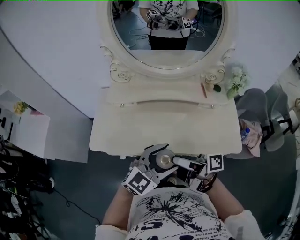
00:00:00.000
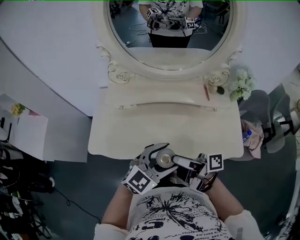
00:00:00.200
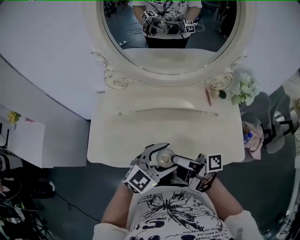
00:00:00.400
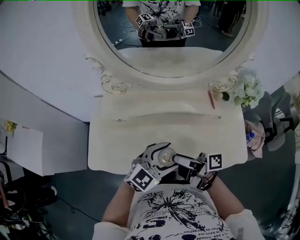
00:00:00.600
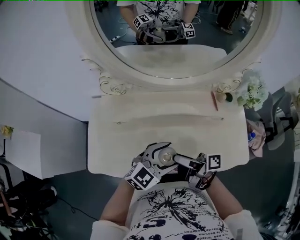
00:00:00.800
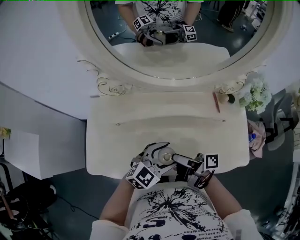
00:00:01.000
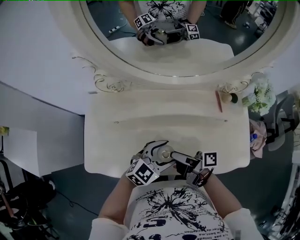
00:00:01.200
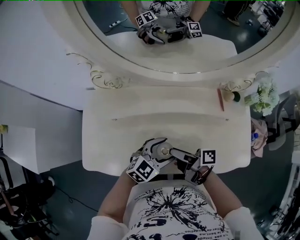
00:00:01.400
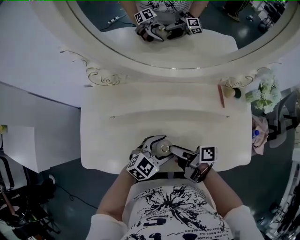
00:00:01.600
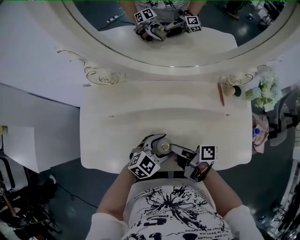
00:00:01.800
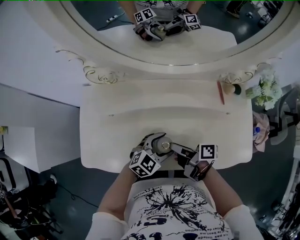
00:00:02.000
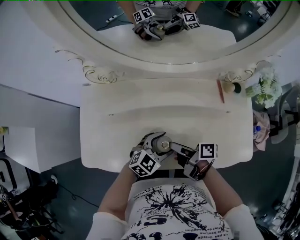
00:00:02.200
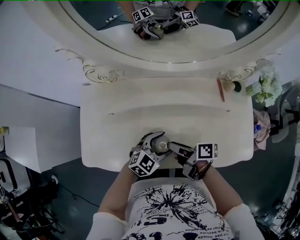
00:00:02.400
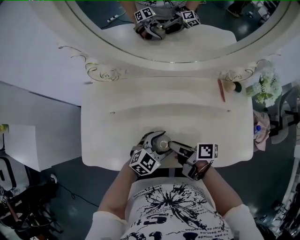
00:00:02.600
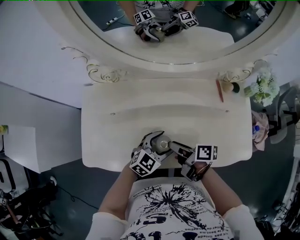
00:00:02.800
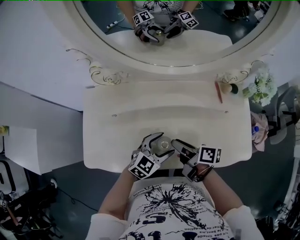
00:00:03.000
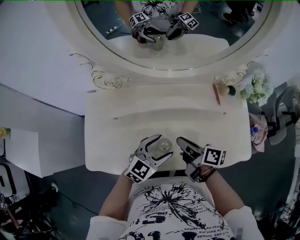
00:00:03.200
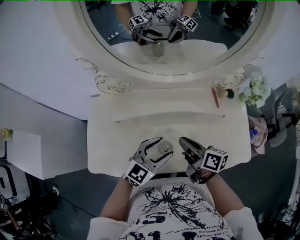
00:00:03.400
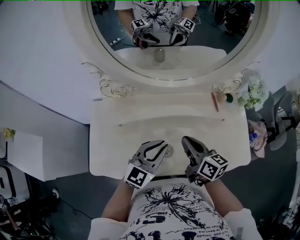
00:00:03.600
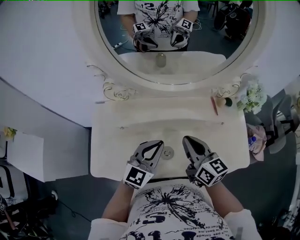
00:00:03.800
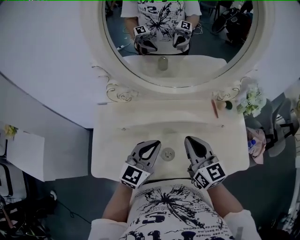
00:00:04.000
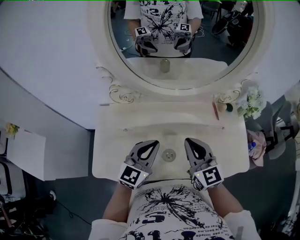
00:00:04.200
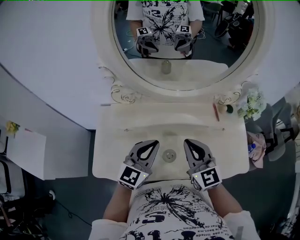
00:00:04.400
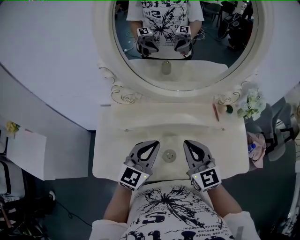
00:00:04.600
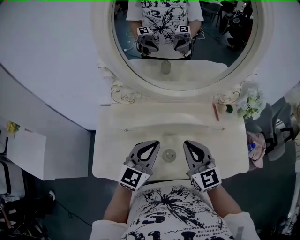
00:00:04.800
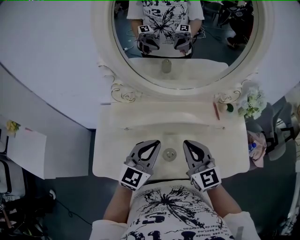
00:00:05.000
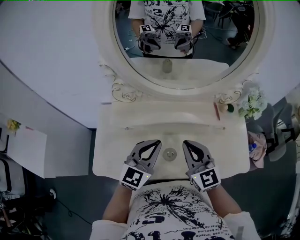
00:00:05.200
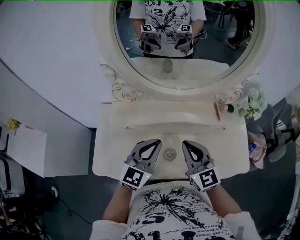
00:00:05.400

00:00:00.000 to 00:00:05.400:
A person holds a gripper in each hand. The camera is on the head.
00:00:00.000 to 00:00:01.400: Both grippers travel together forward and downward, approximately 25 cm.
00:00:01.400 to 00:00:02.800: The right gripper closes up.
00:00:02.800 to 00:00:04.000: The right gripper goes about 20 cm upward, twists roughly 60 degrees counterclockwise, seen from behind, and closes. Meanwhile the left gripper heads upward and to the left, covering about 20 cm, turns by approximately 30 degrees, and closes.
00:00:04.000 to 00:00:05.400: There are only small adjustments of the grippers.

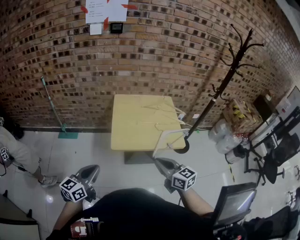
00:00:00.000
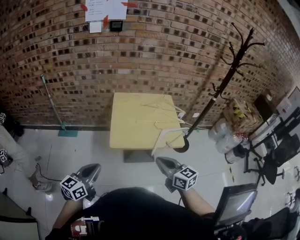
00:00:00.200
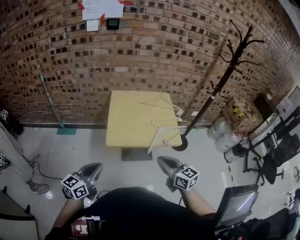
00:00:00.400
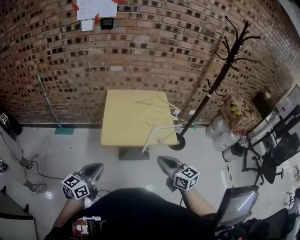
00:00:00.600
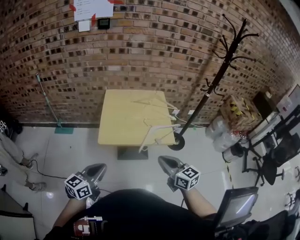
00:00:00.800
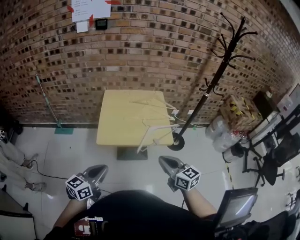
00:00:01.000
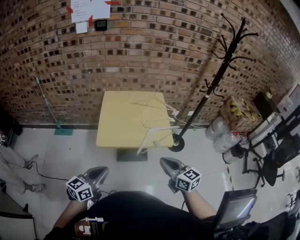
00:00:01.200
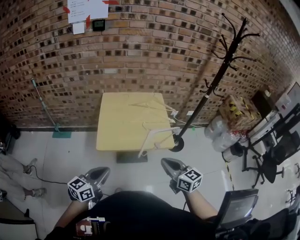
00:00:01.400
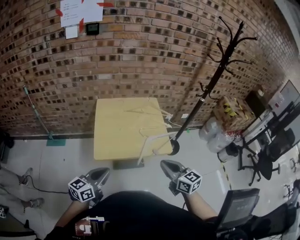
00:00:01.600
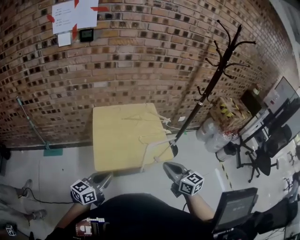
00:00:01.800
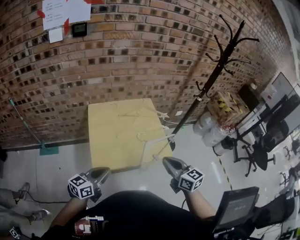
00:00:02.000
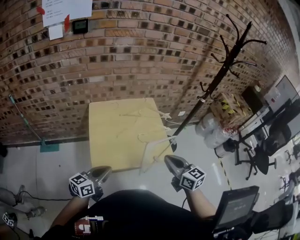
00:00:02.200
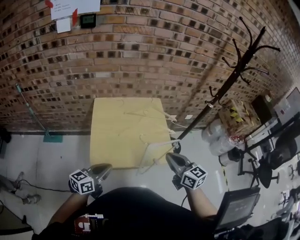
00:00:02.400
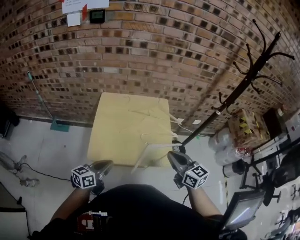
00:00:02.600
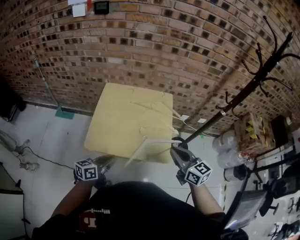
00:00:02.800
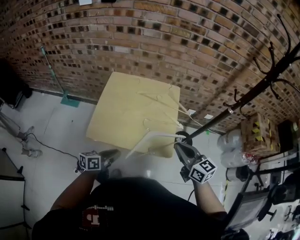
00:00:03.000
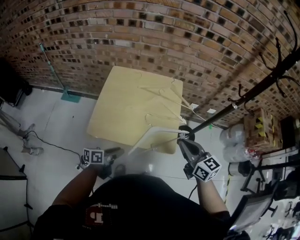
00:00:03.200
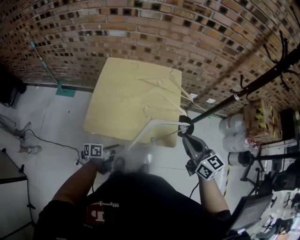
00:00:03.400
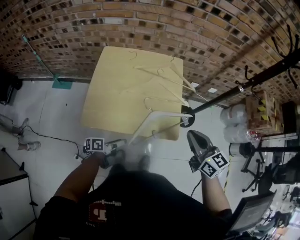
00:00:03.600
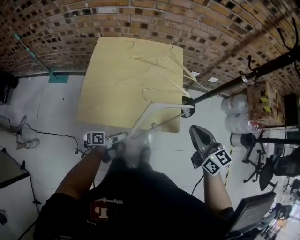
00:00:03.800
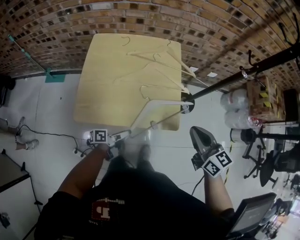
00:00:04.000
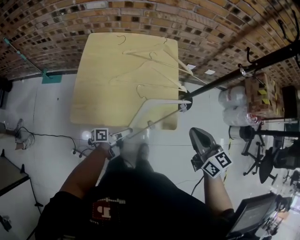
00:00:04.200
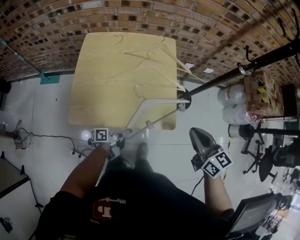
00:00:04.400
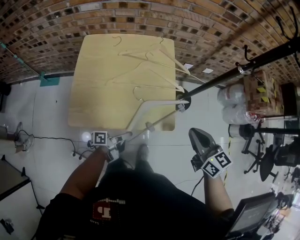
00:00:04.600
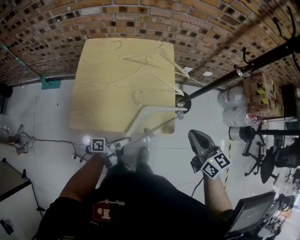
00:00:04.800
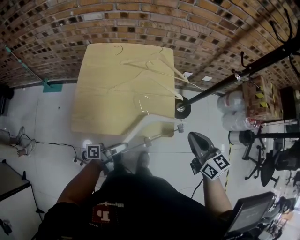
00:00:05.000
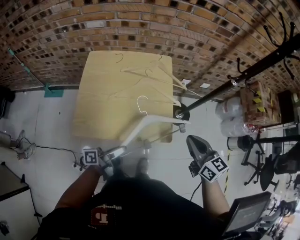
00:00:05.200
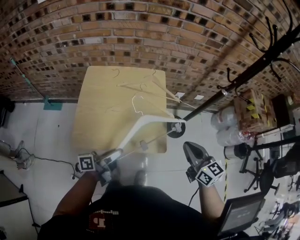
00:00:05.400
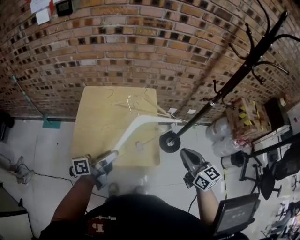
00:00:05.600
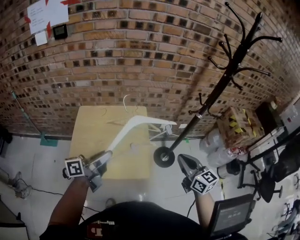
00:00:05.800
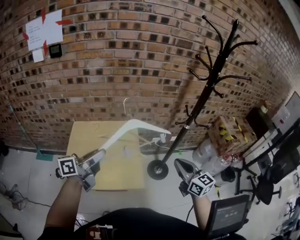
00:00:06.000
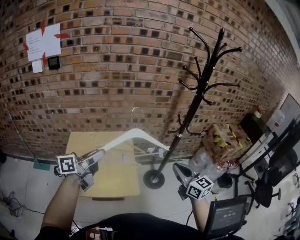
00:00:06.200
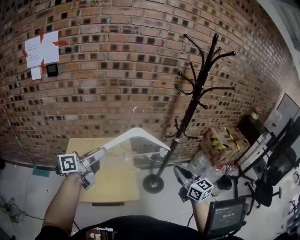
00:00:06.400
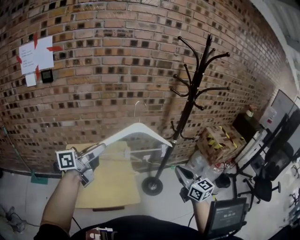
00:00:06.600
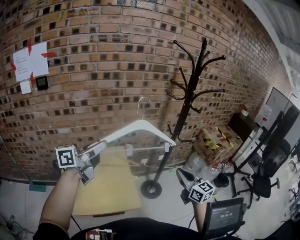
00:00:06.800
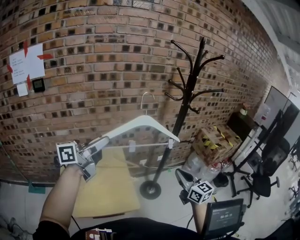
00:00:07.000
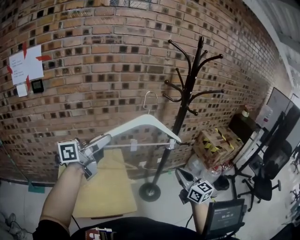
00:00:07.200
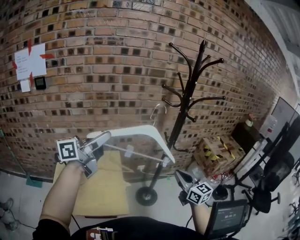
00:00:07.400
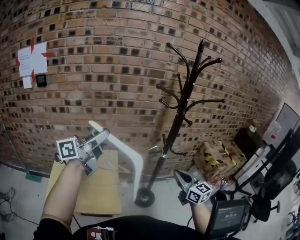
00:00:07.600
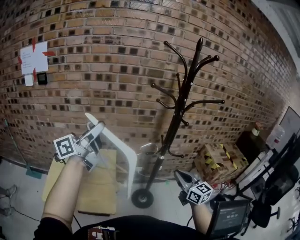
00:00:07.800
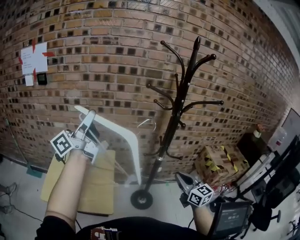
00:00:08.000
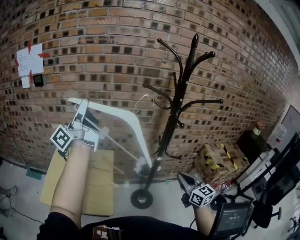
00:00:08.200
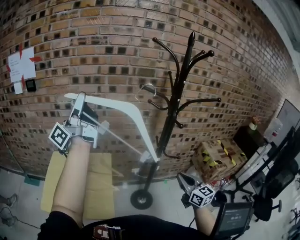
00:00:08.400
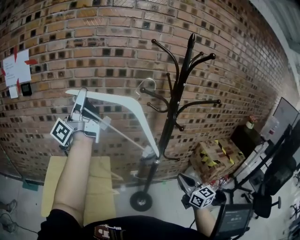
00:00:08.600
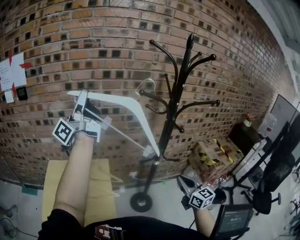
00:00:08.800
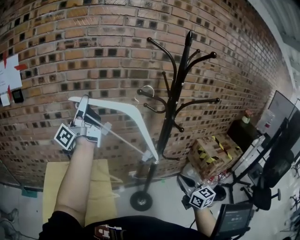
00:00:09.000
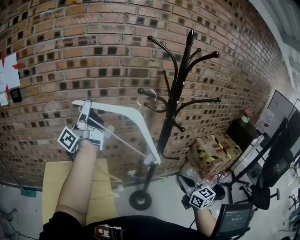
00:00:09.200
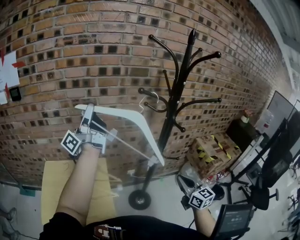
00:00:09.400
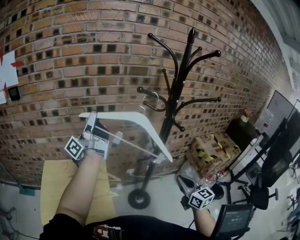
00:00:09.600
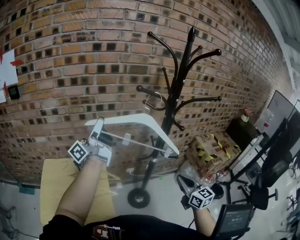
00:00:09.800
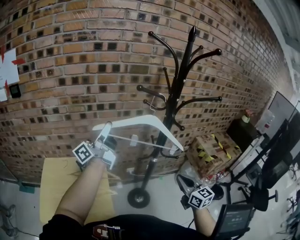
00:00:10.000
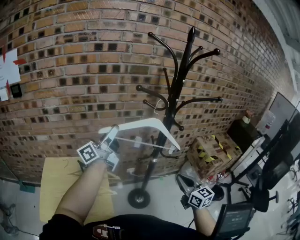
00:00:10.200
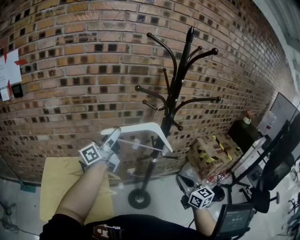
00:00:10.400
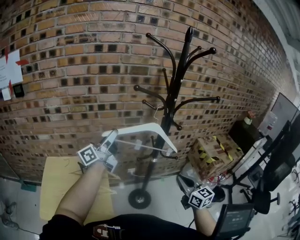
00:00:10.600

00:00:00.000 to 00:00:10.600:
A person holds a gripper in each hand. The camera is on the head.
00:00:00.000 to 00:00:01.600: The right gripper goes about 10 cm to the right. Meanwhile the left gripper travels to the right and forward by some 15 cm.
00:00:01.600 to 00:00:03.000: The right gripper travels forward and to the right by approximately 25 cm. Meanwhile the left gripper is displaced to the right, downward and forward by some 20 cm, and turns by approximately 30 degrees.
00:00:03.000 to 00:00:04.600: The left gripper heads downward and to the right, covering about 20 cm, rotates around the line of its fingers by some 40 degrees, counterclockwise from behind, and opens and closes again. The right gripper travels downward and to the right by roughly 10 cm.
00:00:04.600 to 00:00:06.000: The left gripper shifts roughly 40 cm upward, and twists roughly 40 degrees clockwise, seen from behind. The right gripper heads upward and to the right, covering approximately 20 cm.
00:00:06.000 to 00:00:07.600: The left gripper travels upward, forward and to the right by about 25 cm, and turns by roughly 20 degrees. Meanwhile the right gripper shifts some 15 cm to the right and forward.
00:00:07.600 to 00:00:09.000: The left gripper shifts roughly 20 cm forward and upward, and angles its fingers upward, by about 40 degrees. Meanwhile the right gripper heads to the right, covering approximately 5 cm.
00:00:09.000 to 00:00:10.600: The left gripper goes about 20 cm downward and to the right, and rotates about 30 degrees.

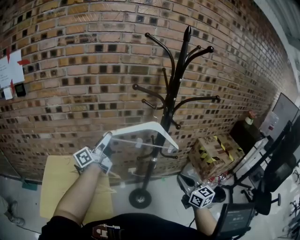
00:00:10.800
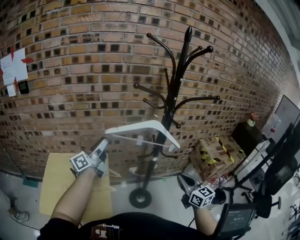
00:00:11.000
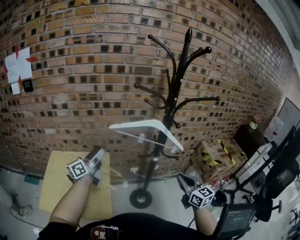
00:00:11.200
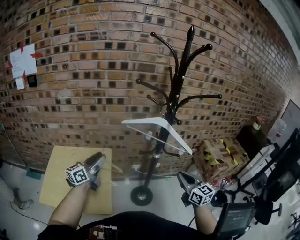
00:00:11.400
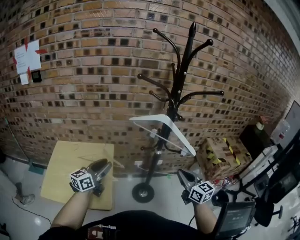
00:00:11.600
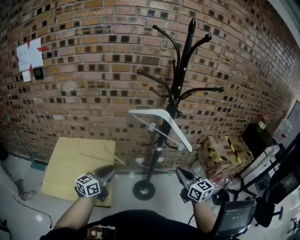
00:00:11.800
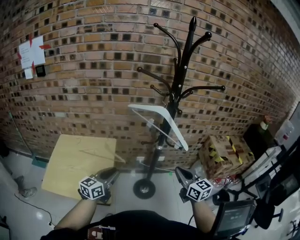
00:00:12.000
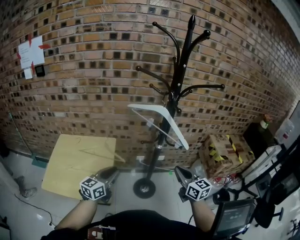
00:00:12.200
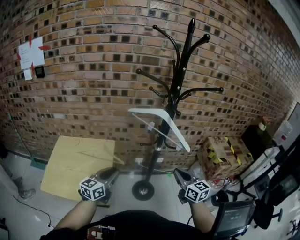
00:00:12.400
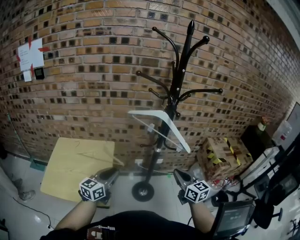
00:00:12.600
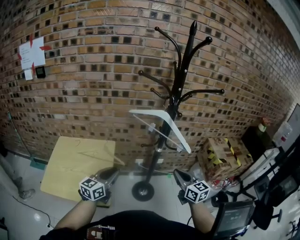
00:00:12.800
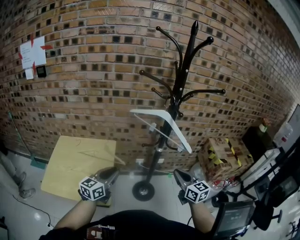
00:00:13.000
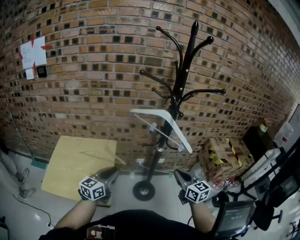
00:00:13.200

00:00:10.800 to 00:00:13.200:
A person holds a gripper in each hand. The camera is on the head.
00:00:10.800 to 00:00:12.000: The left gripper shifts some 25 cm backward and downward, angles its fingers downward, by approximately 30 degrees, and closes up.
00:00:12.000 to 00:00:13.200: The grippers move only a little.

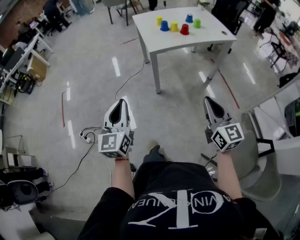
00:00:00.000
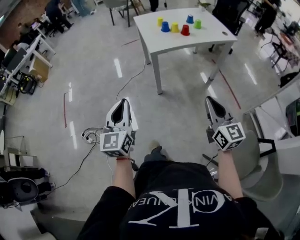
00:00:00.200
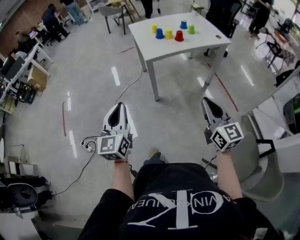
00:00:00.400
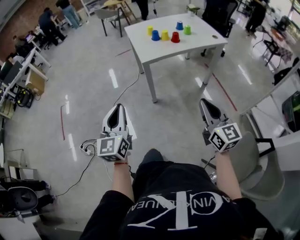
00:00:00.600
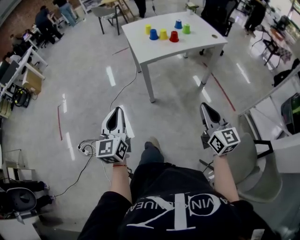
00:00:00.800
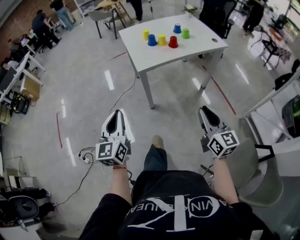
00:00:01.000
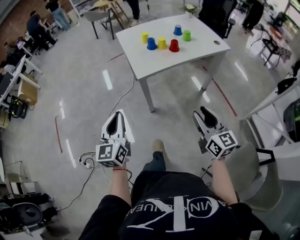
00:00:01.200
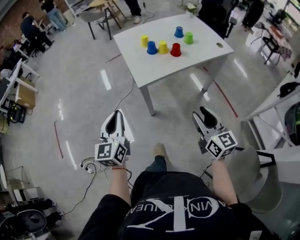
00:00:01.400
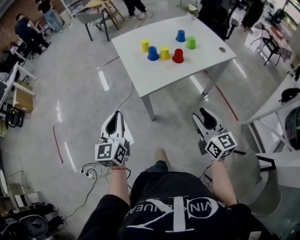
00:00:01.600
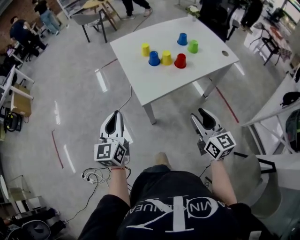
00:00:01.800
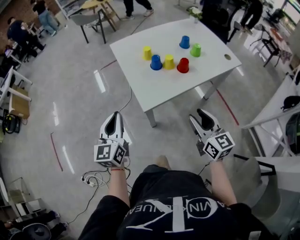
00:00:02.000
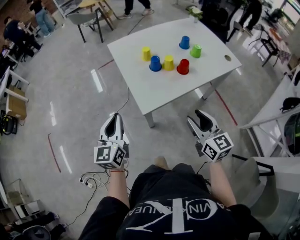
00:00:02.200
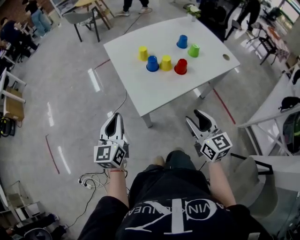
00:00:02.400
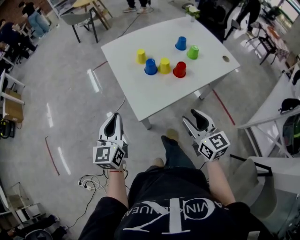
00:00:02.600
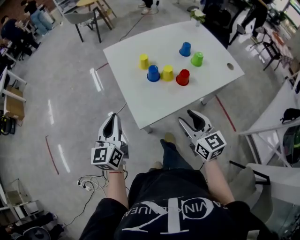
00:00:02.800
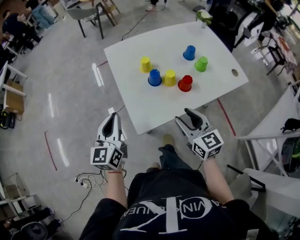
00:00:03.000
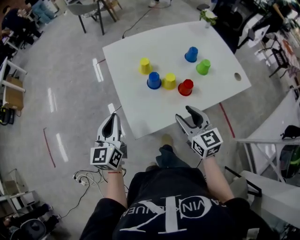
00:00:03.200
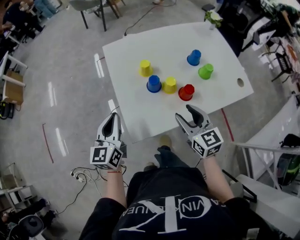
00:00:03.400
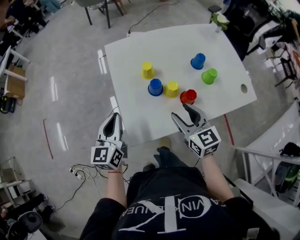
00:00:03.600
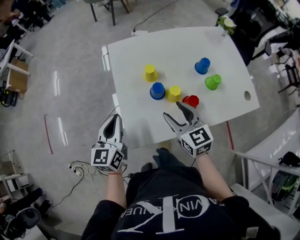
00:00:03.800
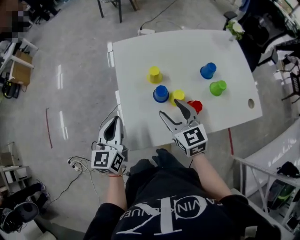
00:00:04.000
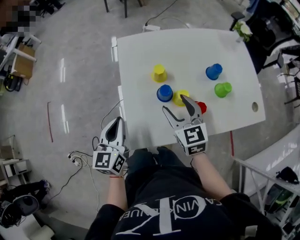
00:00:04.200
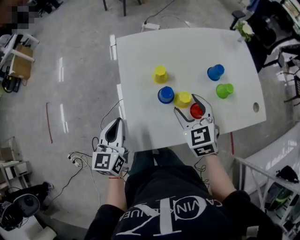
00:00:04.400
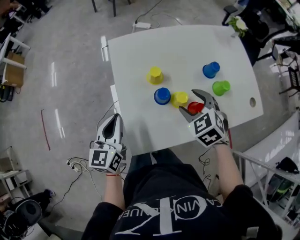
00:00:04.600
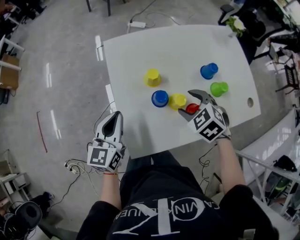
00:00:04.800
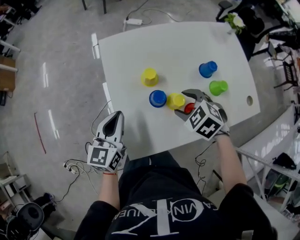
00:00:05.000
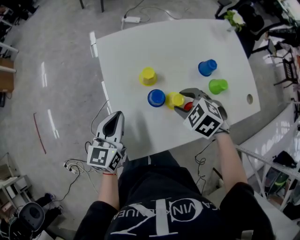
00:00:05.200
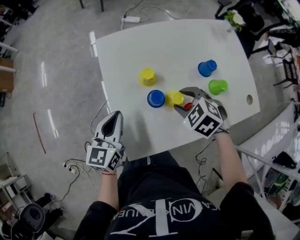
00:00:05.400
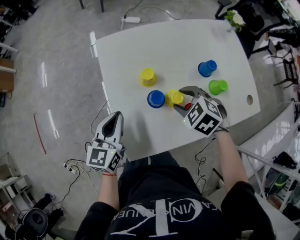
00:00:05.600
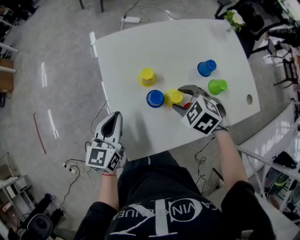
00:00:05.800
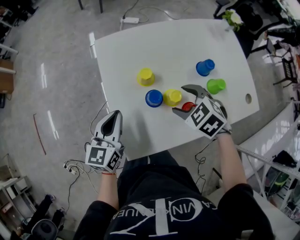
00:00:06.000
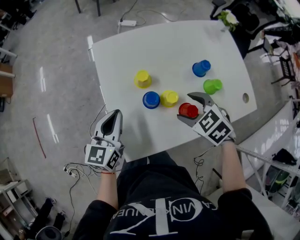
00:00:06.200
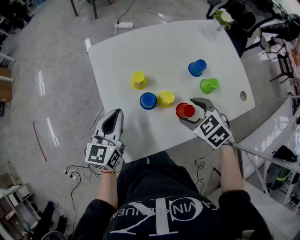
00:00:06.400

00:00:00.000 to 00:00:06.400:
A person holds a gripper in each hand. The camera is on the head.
00:00:00.000 to 00:00:01.600: Both grippers move forward, roughly 30 cm. The right gripper opens.
00:00:01.600 to 00:00:03.200: The grippers both shift forward by about 25 cm.
00:00:03.200 to 00:00:04.800: The left gripper moves forward, roughly 10 cm. Meanwhile the right gripper moves forward, some 15 cm, and angles its fingers downward, by some 40 degrees.
00:00:04.800 to 00:00:06.400: The left gripper moves approximately 5 cm; the right gripper changes place by some 5 cm.
